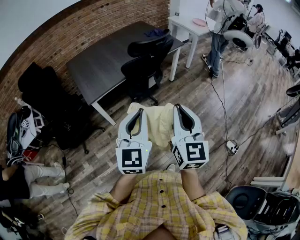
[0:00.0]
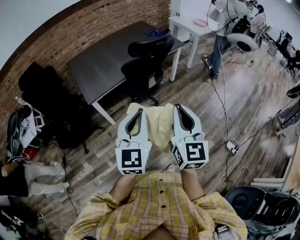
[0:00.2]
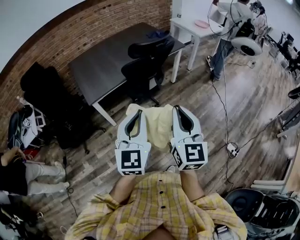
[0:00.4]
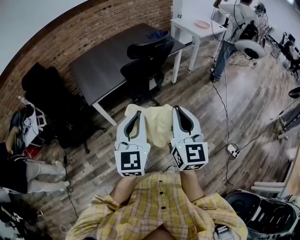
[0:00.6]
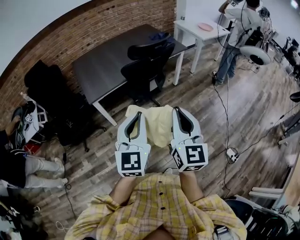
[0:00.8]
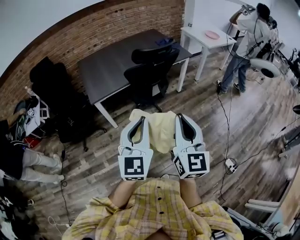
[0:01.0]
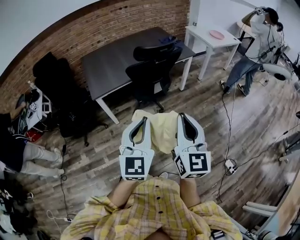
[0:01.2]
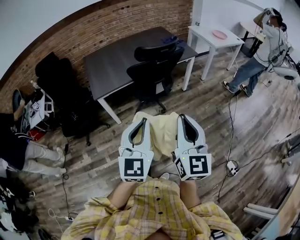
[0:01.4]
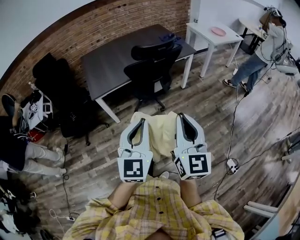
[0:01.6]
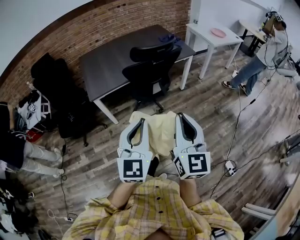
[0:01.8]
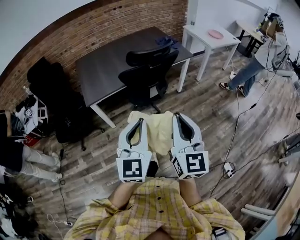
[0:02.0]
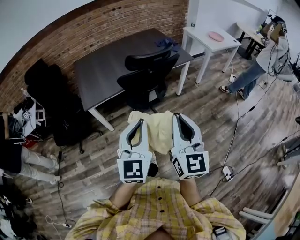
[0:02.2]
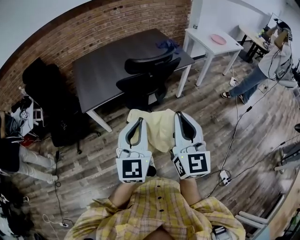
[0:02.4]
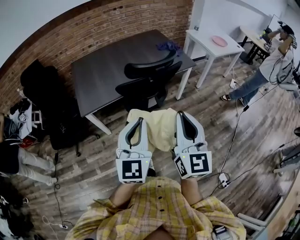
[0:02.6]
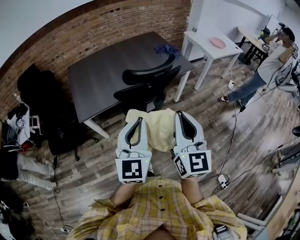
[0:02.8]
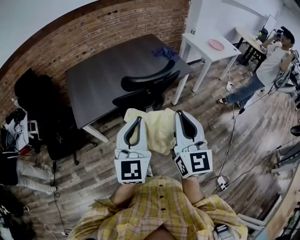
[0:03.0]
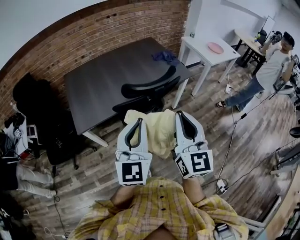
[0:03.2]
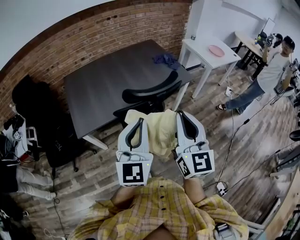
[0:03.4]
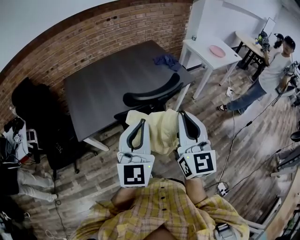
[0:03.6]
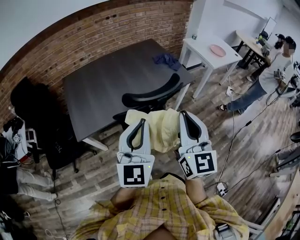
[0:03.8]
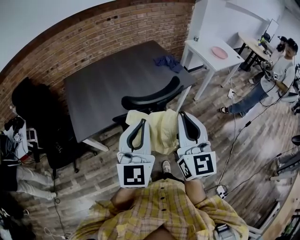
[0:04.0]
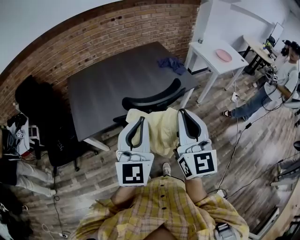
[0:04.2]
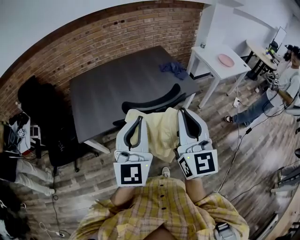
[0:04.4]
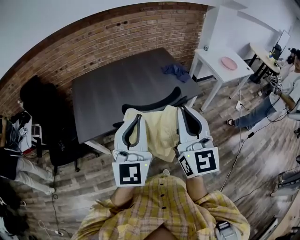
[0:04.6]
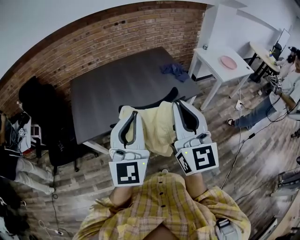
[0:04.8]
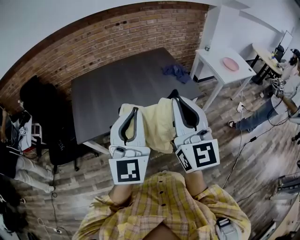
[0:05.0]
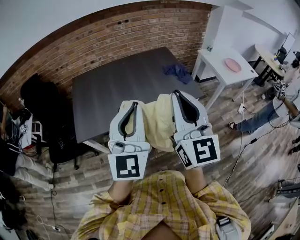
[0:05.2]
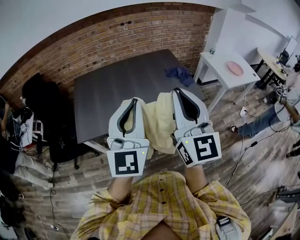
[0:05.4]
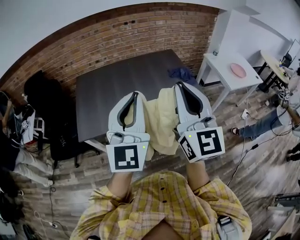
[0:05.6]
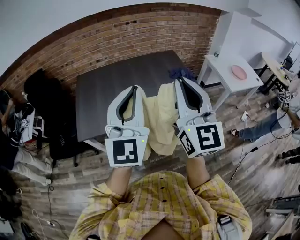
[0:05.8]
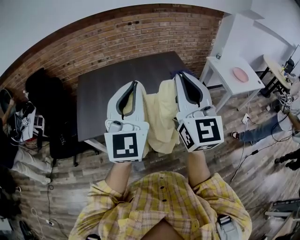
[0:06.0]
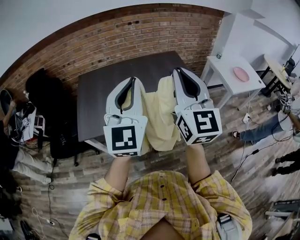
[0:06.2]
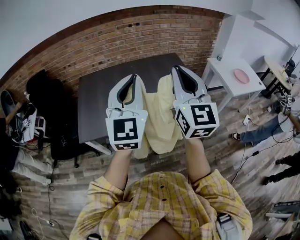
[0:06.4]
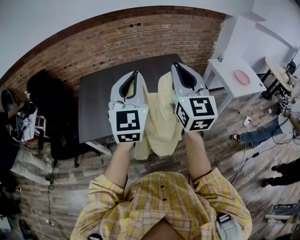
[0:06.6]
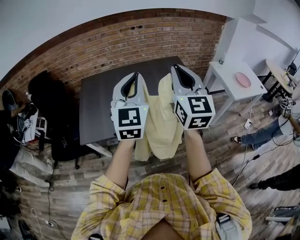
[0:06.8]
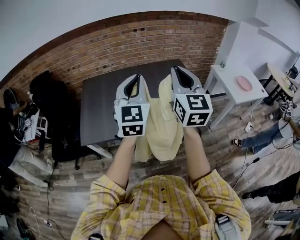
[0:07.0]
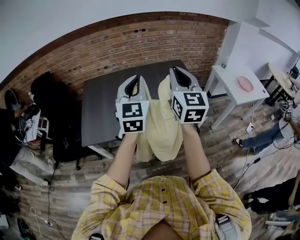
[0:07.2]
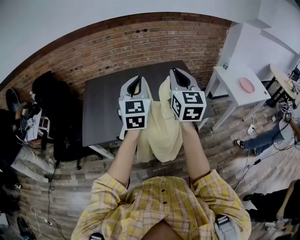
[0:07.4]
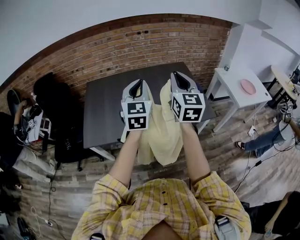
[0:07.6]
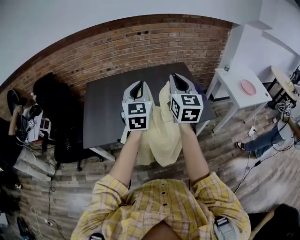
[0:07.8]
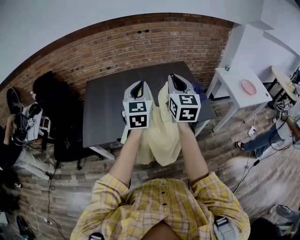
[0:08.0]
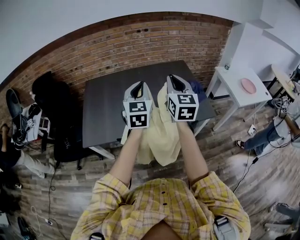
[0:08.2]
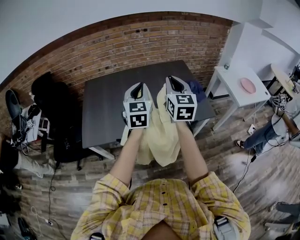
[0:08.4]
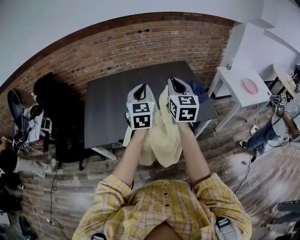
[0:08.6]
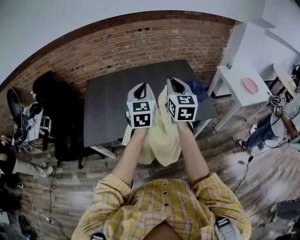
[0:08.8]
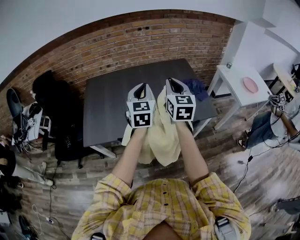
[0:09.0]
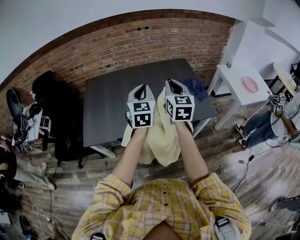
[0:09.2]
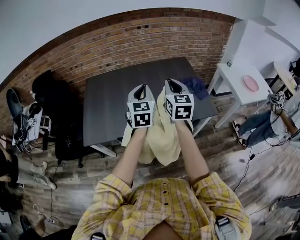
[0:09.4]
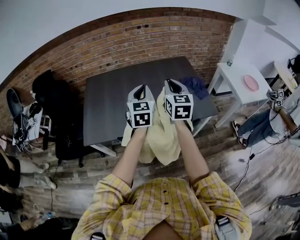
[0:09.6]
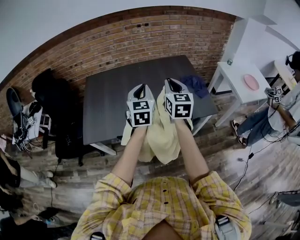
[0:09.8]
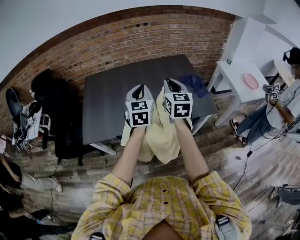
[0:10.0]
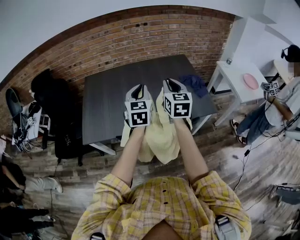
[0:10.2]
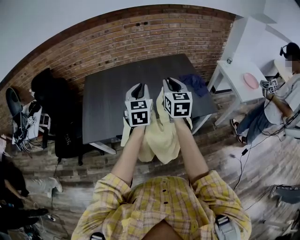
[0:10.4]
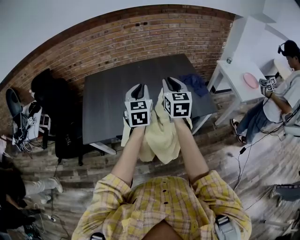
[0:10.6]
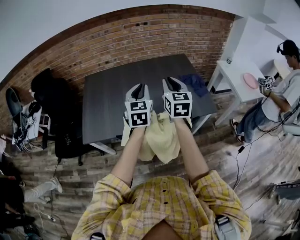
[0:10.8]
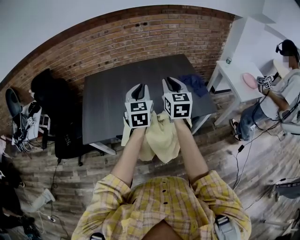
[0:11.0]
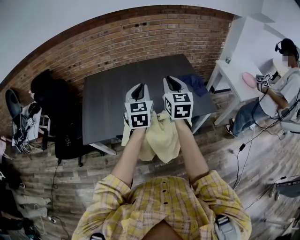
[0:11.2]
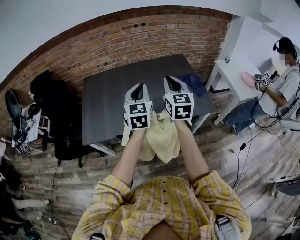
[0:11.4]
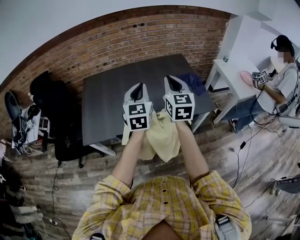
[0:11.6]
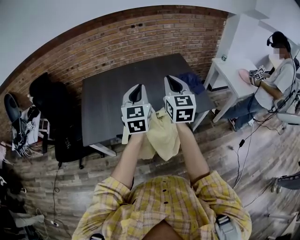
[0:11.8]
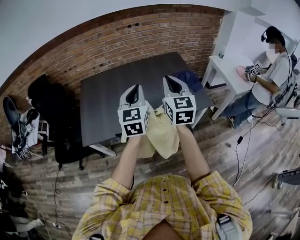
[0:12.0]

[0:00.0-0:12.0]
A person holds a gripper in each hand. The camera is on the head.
0:00.0 to 0:01.6: The grippers both shift to the right by some 10 cm.
0:01.6 to 0:03.0: Both grippers move forward, about 25 cm.
0:03.0 to 0:04.4: Both grippers move forward and upward, about 15 cm.
0:04.4 to 0:06.0: Both grippers travel together forward and upward, approximately 15 cm.
0:06.0 to 0:07.6: Both grippers travel together forward and downward, about 20 cm.
0:07.6 to 0:09.0: Both grippers travel together downward, about 5 cm.
0:09.0 to 0:10.4: The grippers stay close to where they were, moving slightly.
0:10.4 to 0:12.0: The left gripper travels backward by roughly 5 cm. Meanwhile the right gripper goes some 10 cm backward and upward.

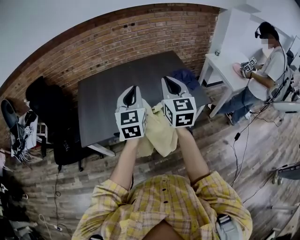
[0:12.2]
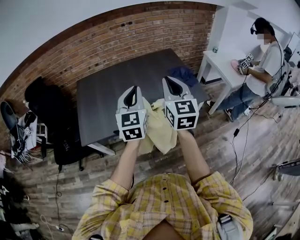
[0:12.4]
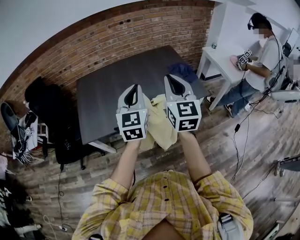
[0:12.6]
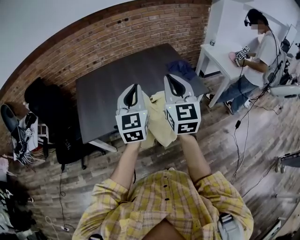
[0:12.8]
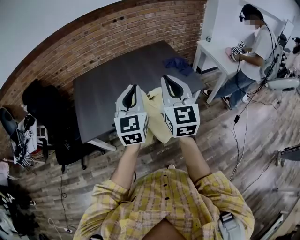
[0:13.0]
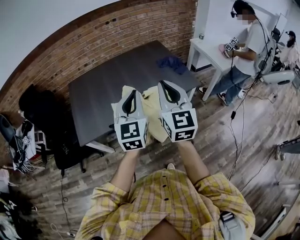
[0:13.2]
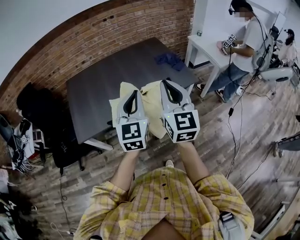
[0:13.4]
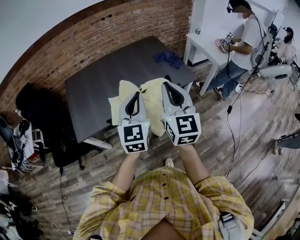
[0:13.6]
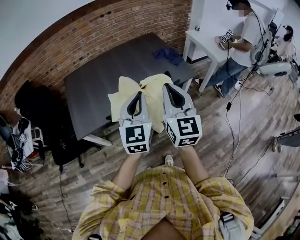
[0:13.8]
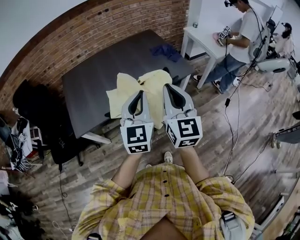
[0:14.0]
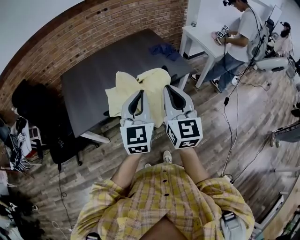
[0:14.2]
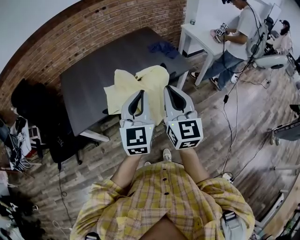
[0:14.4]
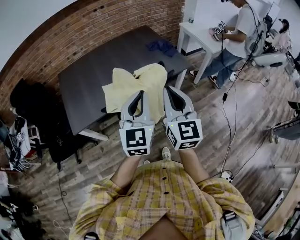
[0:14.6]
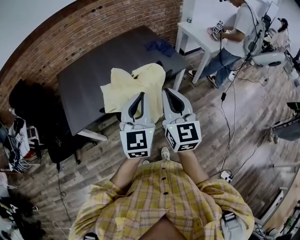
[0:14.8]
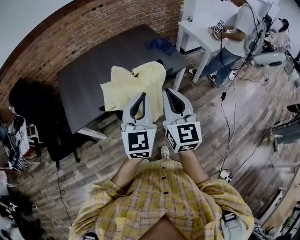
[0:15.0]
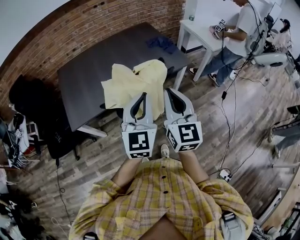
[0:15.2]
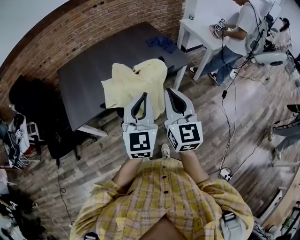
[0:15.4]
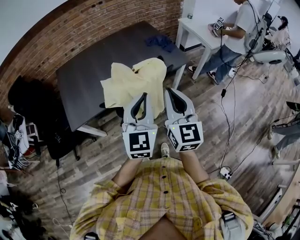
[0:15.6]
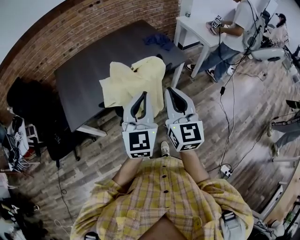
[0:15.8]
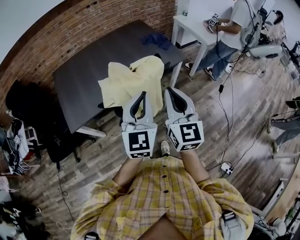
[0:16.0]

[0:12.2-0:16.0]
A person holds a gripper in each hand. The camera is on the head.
0:12.2 to 0:13.4: The grippers both shift backward by approximately 10 cm.
0:13.4 to 0:14.8: The two grippers go some 10 cm backward.
0:14.8 to 0:16.0: The grippers stay close to where they were, moving slightly.

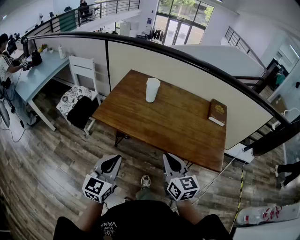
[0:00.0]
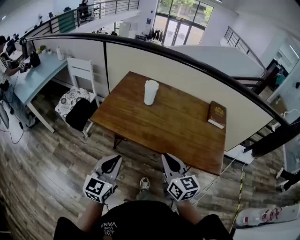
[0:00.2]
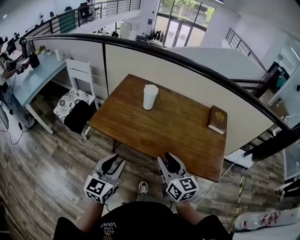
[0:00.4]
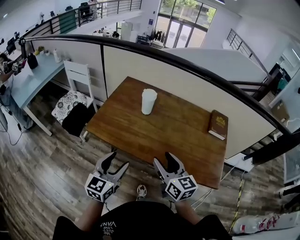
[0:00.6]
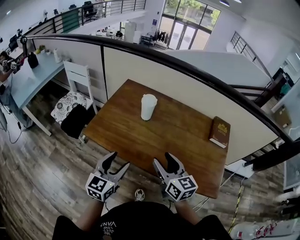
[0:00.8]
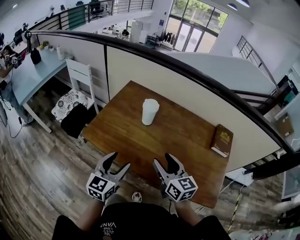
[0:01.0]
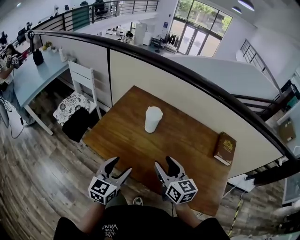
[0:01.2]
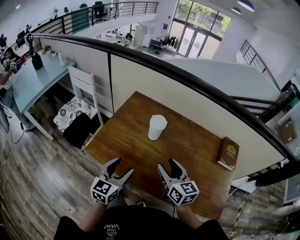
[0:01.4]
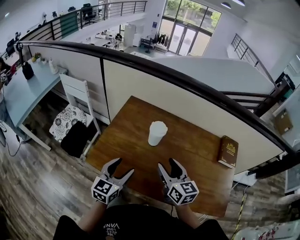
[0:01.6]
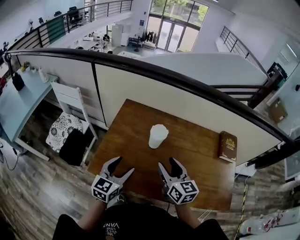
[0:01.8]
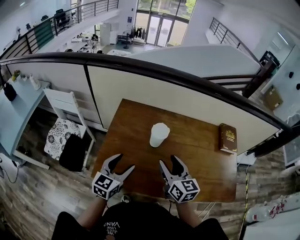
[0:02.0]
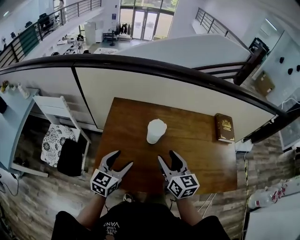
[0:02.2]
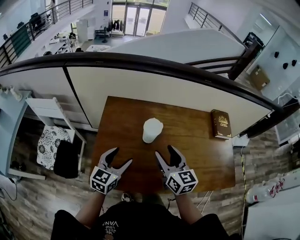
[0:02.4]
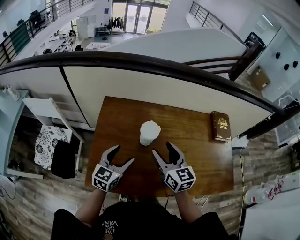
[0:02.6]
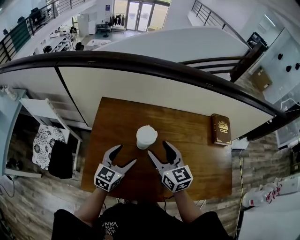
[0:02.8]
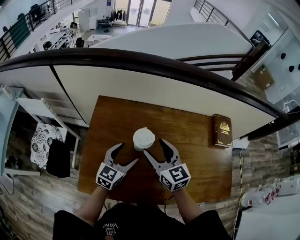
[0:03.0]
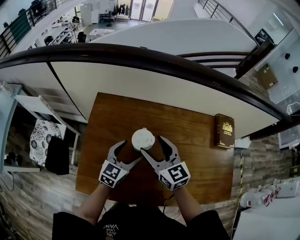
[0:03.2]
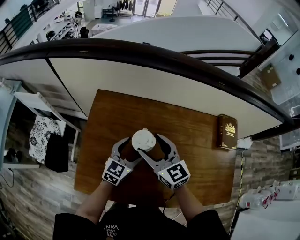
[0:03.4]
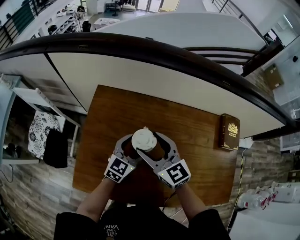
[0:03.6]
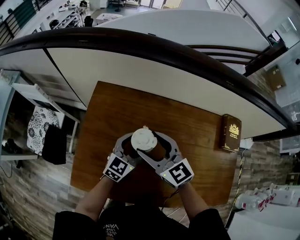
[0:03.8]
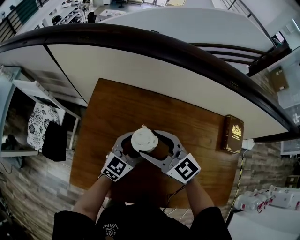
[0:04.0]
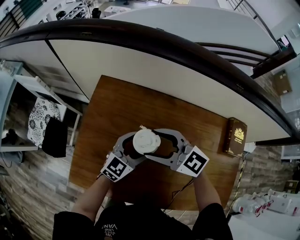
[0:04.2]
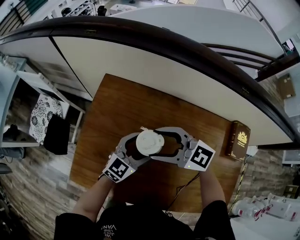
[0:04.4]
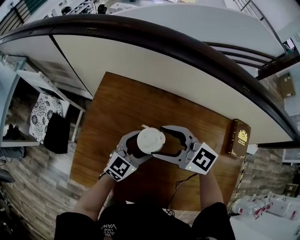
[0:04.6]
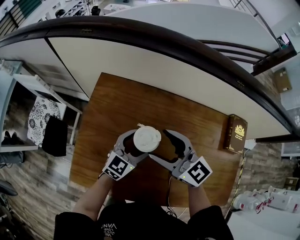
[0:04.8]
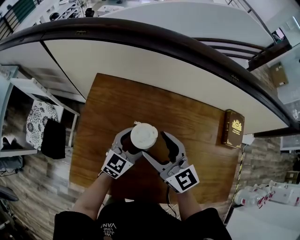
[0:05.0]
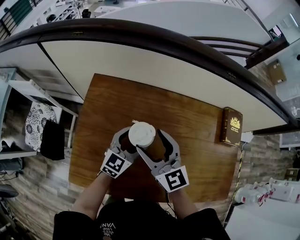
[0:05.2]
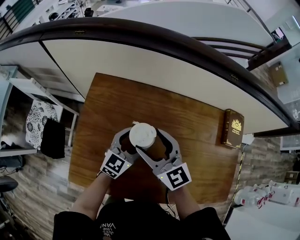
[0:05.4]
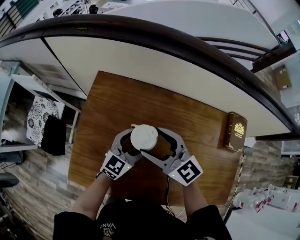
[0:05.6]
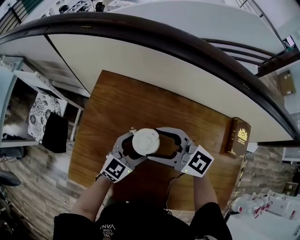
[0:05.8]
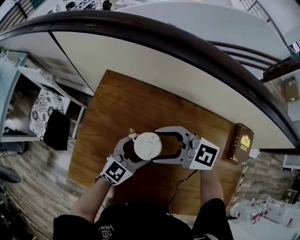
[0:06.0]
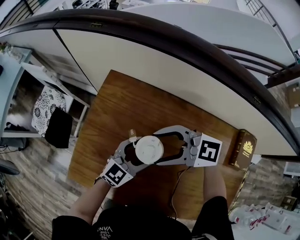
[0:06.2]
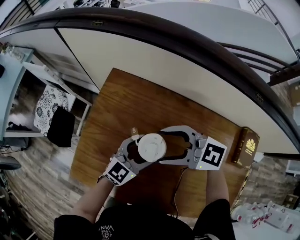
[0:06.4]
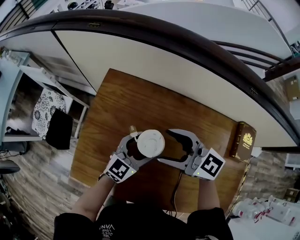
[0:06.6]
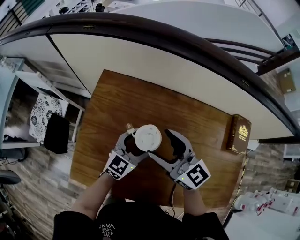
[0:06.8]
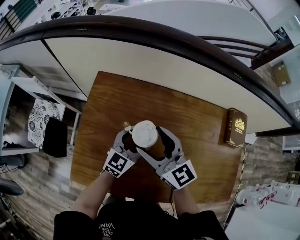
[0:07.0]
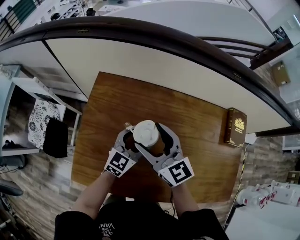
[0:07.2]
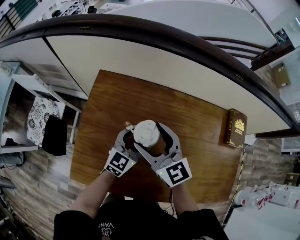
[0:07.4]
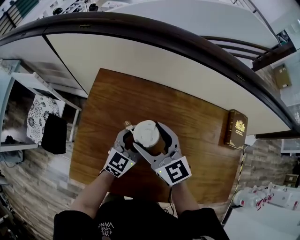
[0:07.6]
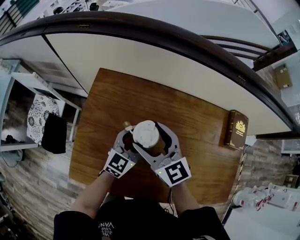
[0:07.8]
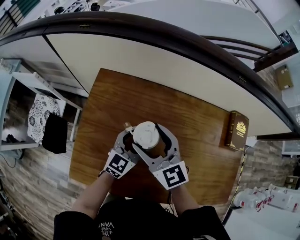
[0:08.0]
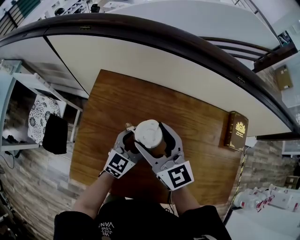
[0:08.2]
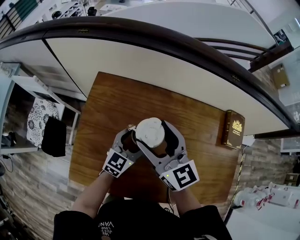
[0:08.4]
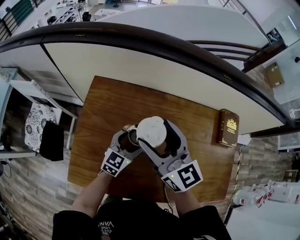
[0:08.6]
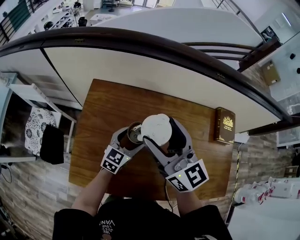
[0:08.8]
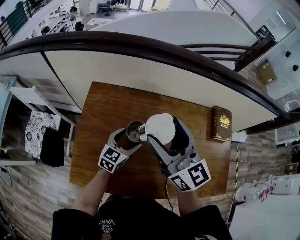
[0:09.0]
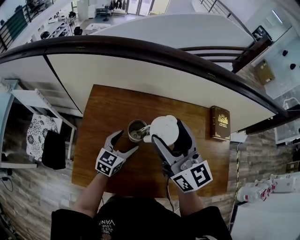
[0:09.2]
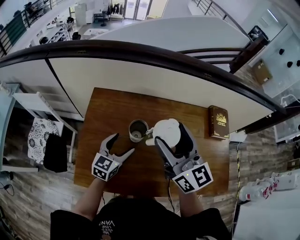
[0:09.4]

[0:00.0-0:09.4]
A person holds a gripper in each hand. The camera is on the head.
0:00.0 to 0:01.6: The grippers both shift forward by about 30 cm. The left gripper opens, while the right gripper opens its fingers.
0:01.6 to 0:03.2: The left gripper shifts about 20 cm forward and downward, and rotates some 20 degrees; the right gripper goes some 15 cm forward.
0:03.2 to 0:04.8: The right gripper rotates roughly 20 degrees.
0:04.8 to 0:06.2: The right gripper rotates about 50 degrees.
0:06.2 to 0:07.8: The right gripper changes its angle by some 60 degrees.
0:07.8 to 0:09.4: The left gripper moves to the left, about 5 cm; the right gripper is displaced upward and to the right by some 20 cm, and swivels approximately 30 degrees.
